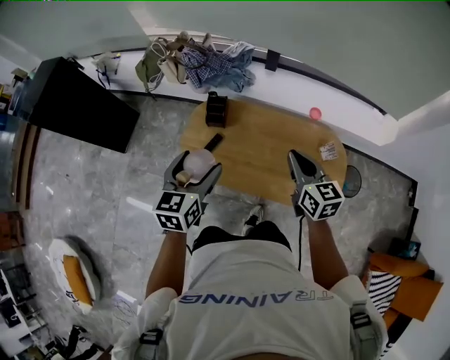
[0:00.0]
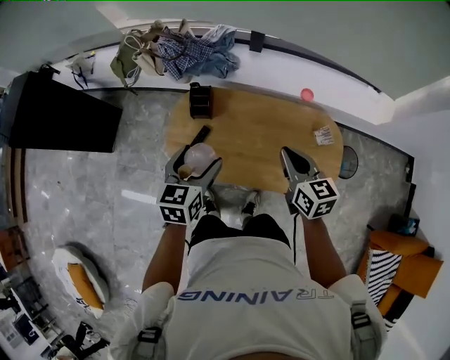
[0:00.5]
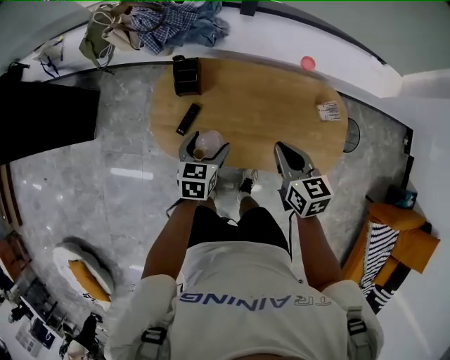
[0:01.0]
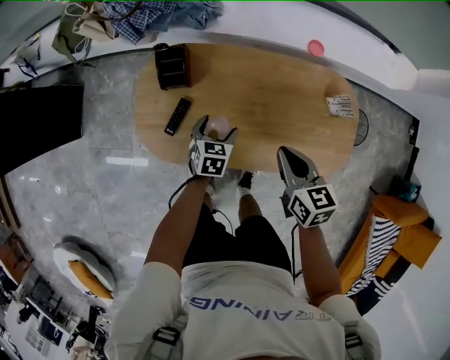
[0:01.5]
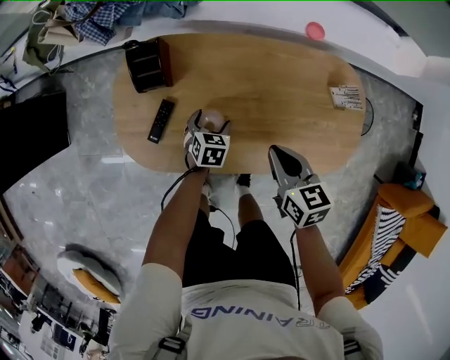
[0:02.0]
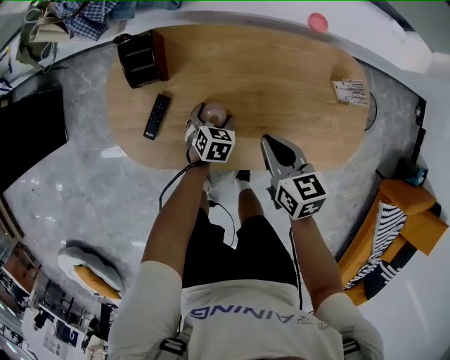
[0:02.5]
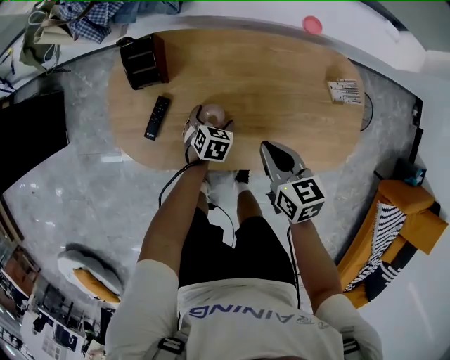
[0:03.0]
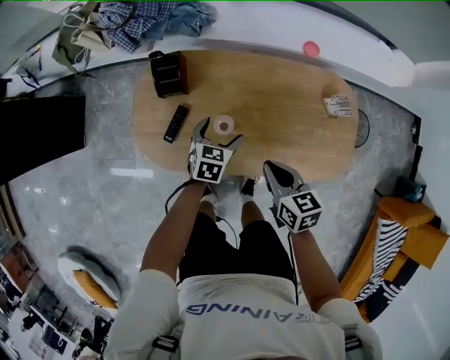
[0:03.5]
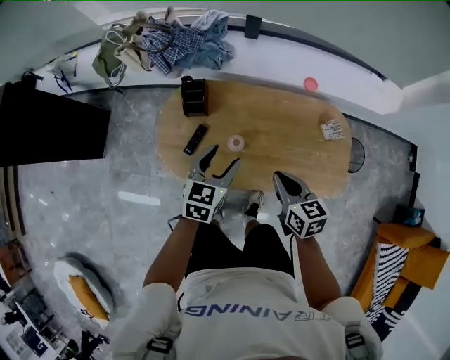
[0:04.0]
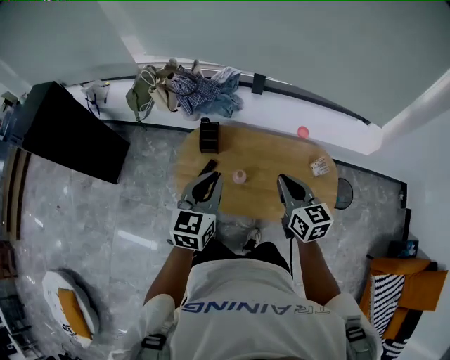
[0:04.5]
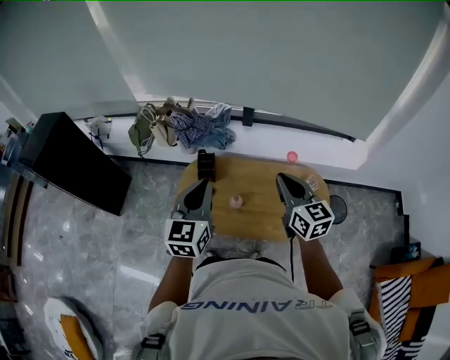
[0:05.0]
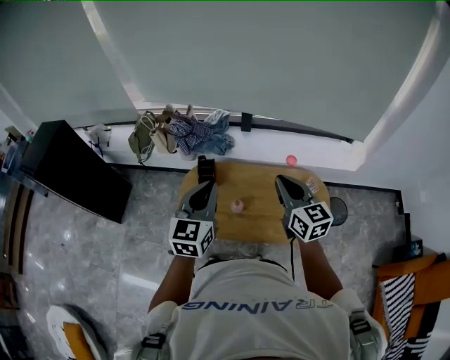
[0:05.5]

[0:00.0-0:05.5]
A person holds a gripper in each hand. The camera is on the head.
0:00.0 to 0:02.0: The left gripper moves downward, roughly 50 cm, and tilts its fingers about 40 degrees downward; the right gripper shifts about 30 cm downward, and changes its angle by some 30 degrees.
0:02.0 to 0:03.5: The left gripper shifts approximately 15 cm upward. The right gripper changes place by approximately 5 cm.
0:03.5 to 0:05.5: Both grippers move upward, approximately 40 cm. The right gripper points its fingers some 30 degrees further upward. Meanwhile the left gripper points its fingers about 40 degrees further upward, and closes.

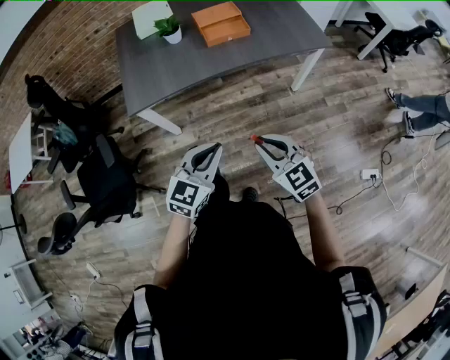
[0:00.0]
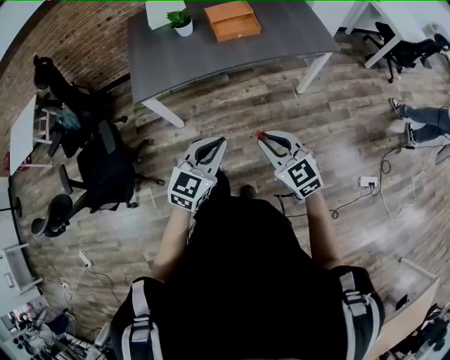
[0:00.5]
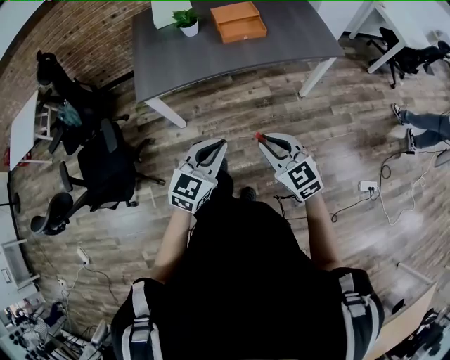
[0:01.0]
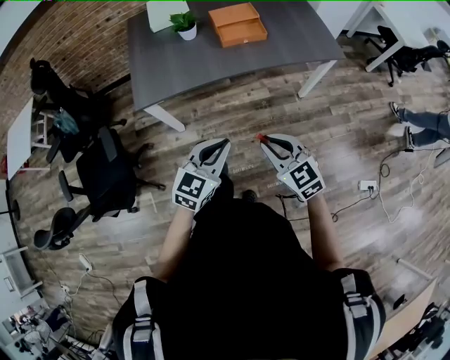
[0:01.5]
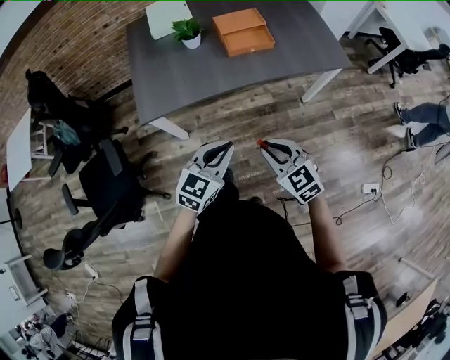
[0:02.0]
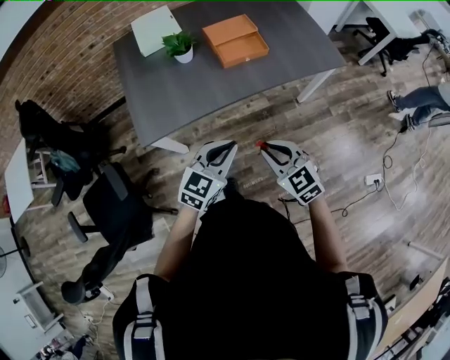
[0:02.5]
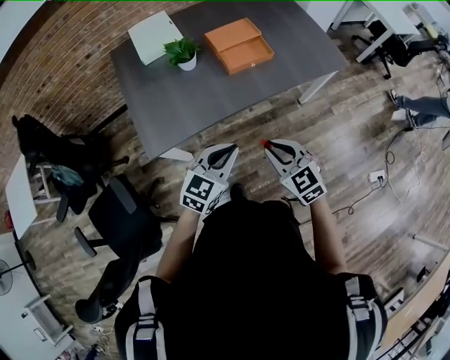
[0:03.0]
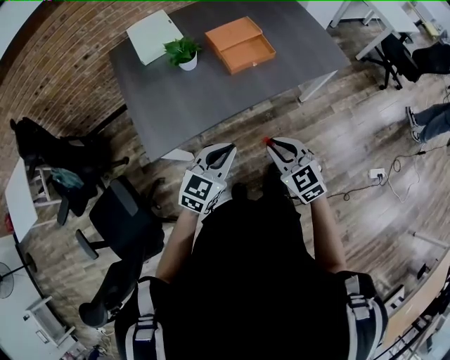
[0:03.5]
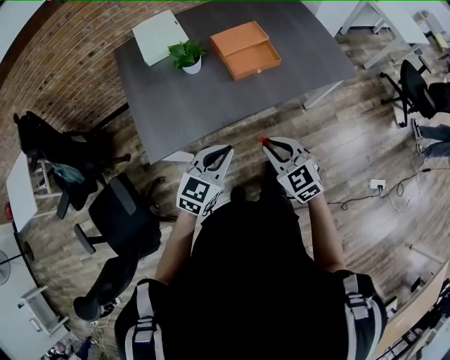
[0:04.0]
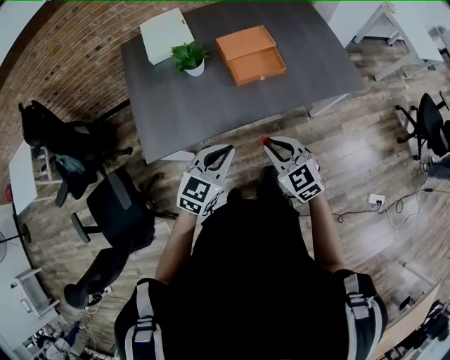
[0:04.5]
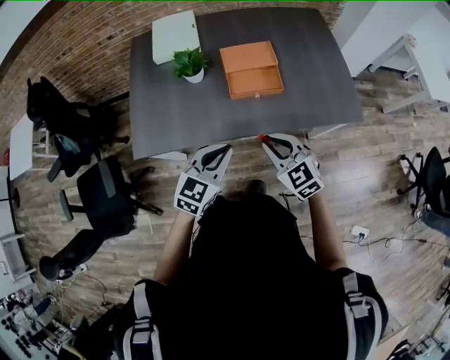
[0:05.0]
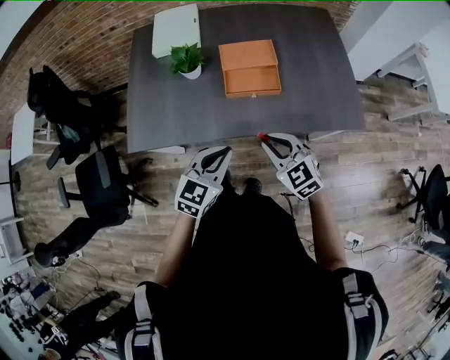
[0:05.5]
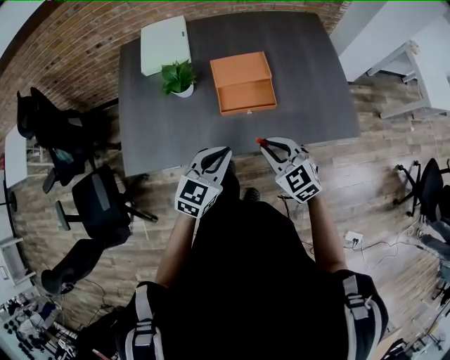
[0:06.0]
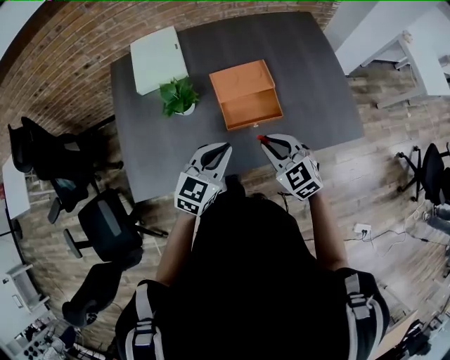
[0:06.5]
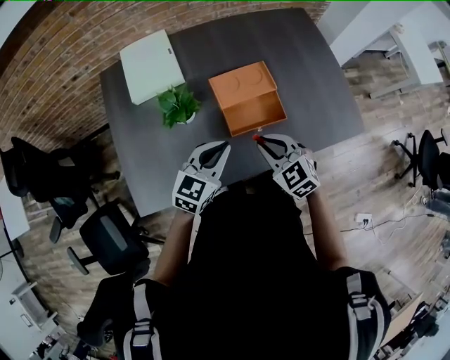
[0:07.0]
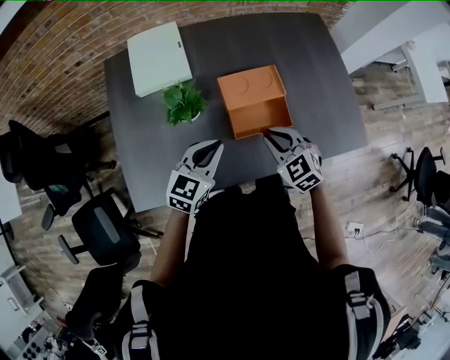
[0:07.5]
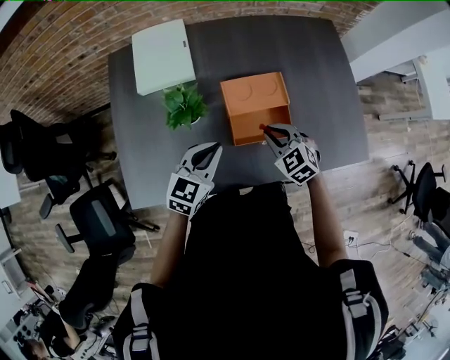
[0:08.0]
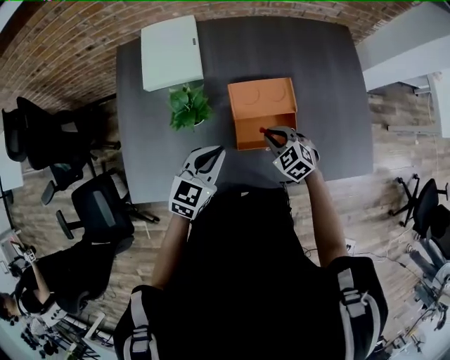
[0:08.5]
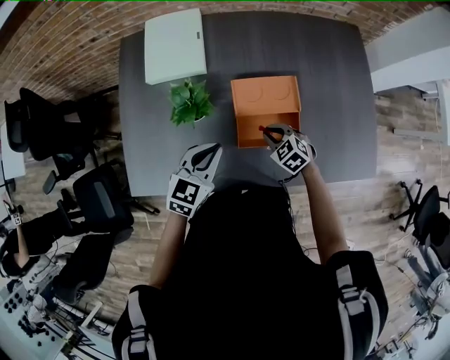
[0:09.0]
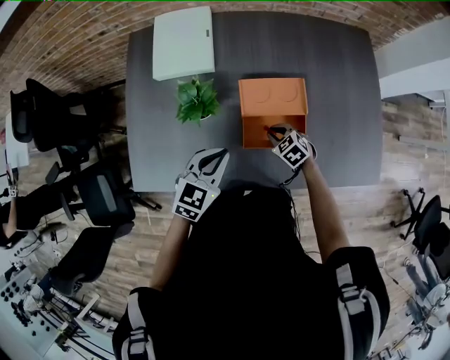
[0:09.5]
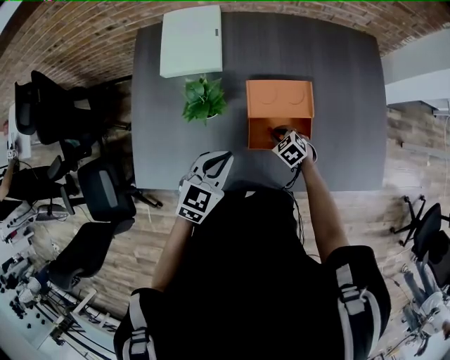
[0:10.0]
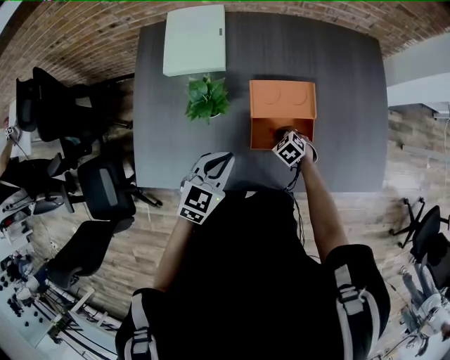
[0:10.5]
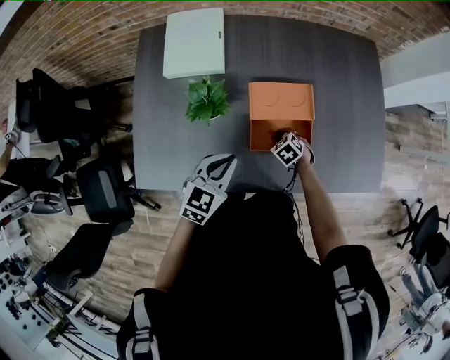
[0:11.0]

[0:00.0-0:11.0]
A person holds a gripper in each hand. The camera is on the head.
0:00.0 to 0:02.0: Both grippers move forward and to the left, approximately 10 cm.
0:02.0 to 0:03.5: The grippers both shift forward and to the left by roughly 15 cm.
0:03.5 to 0:05.5: The left gripper is displaced to the right and forward by roughly 20 cm, and rotates some 20 degrees. Meanwhile the right gripper shifts roughly 25 cm forward and to the right, and swivels approximately 30 degrees.
0:05.5 to 0:07.5: The right gripper shifts roughly 20 cm forward. The left gripper goes roughly 25 cm forward and to the left.
0:07.5 to 0:09.0: The right gripper shifts approximately 15 cm downward and forward, and swivels about 20 degrees.
0:09.0 to 0:11.0: The right gripper moves downward, approximately 10 cm.

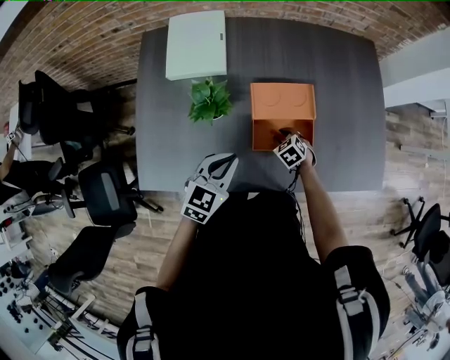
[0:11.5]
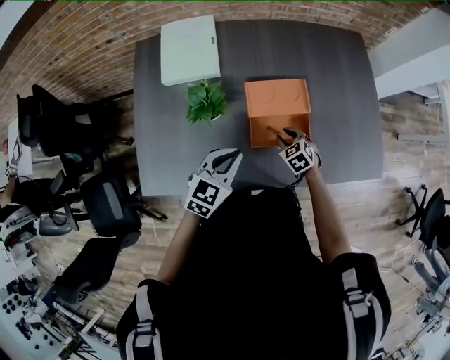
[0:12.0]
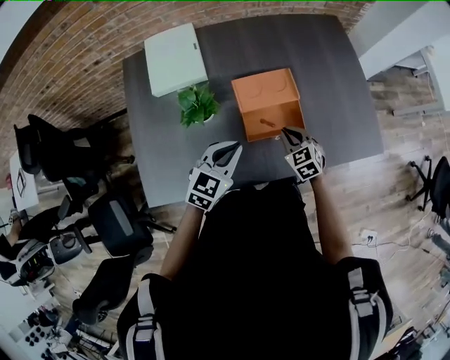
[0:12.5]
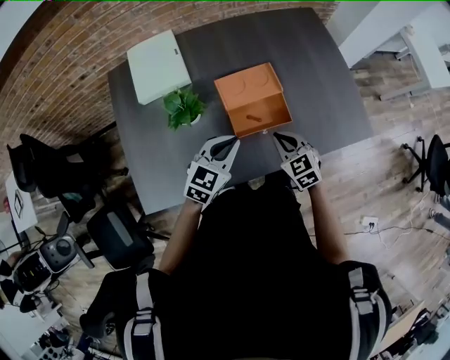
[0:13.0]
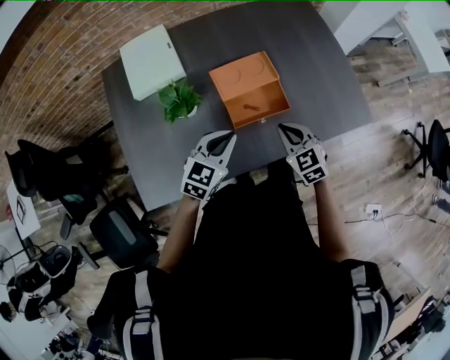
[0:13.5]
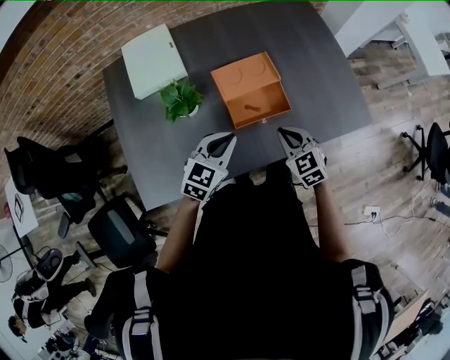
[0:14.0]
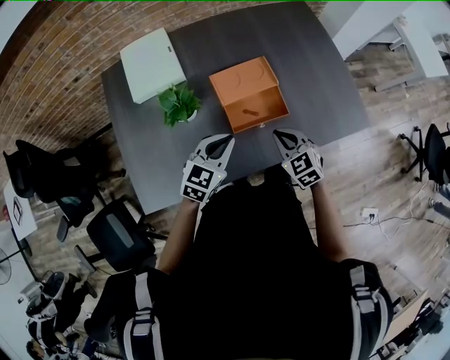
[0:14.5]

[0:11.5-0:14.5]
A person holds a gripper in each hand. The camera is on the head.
0:11.5 to 0:13.0: The left gripper moves to the right, about 5 cm, while the right gripper is displaced upward and backward by some 20 cm, turns by about 30 degrees, and closes its fingers.
0:13.0 to 0:14.5: The grippers move only a little.

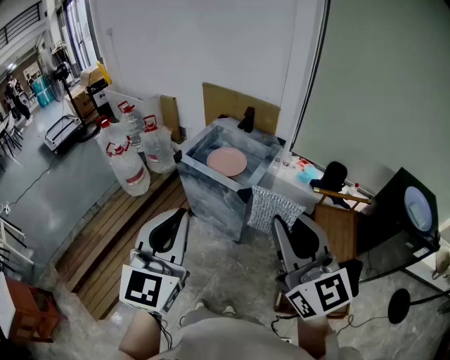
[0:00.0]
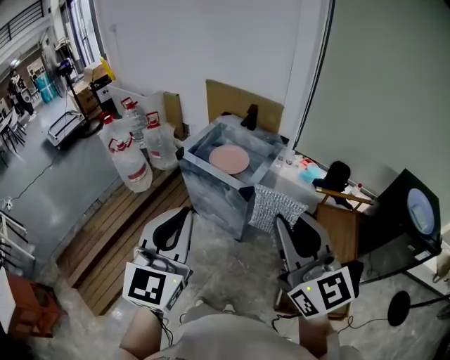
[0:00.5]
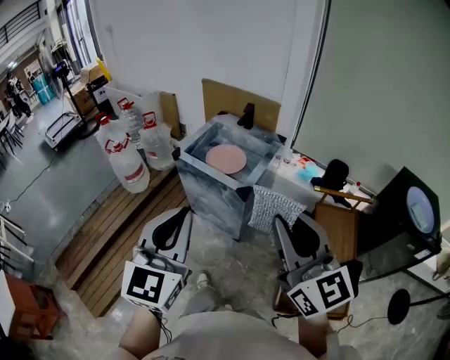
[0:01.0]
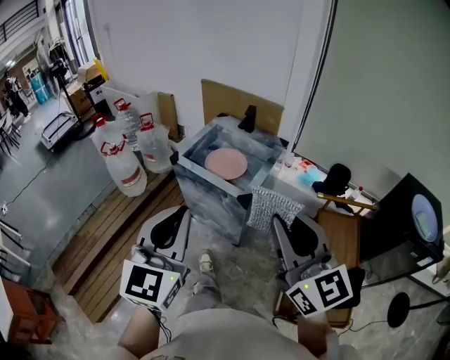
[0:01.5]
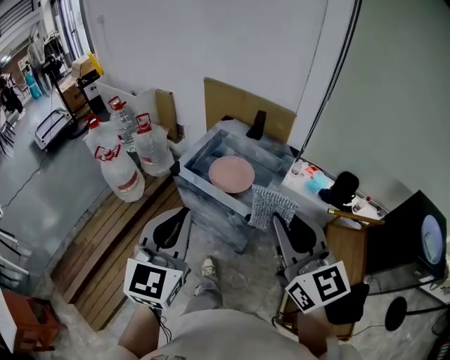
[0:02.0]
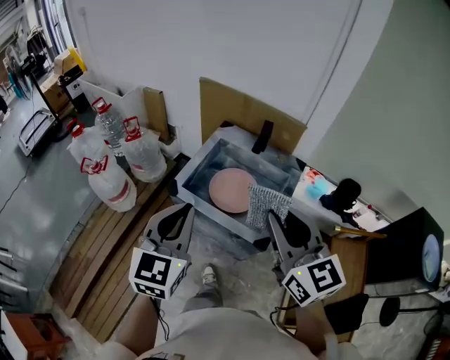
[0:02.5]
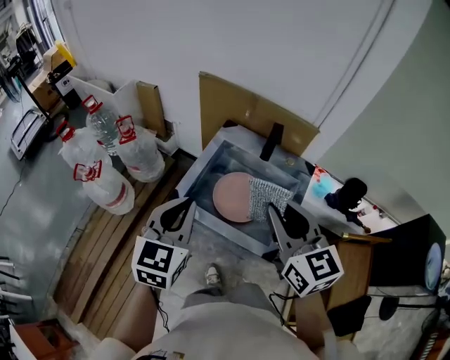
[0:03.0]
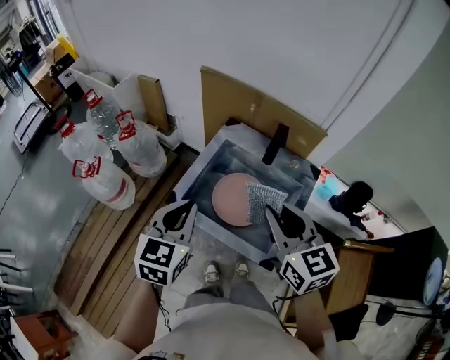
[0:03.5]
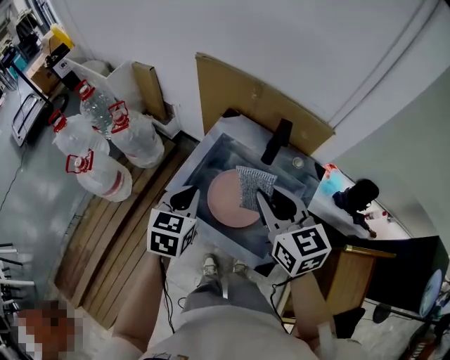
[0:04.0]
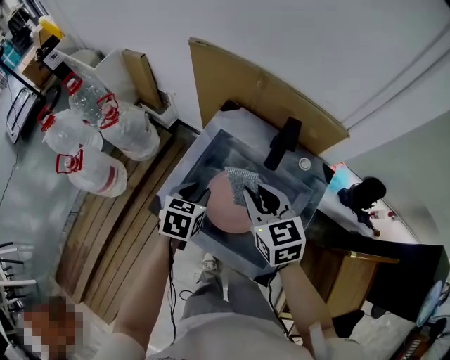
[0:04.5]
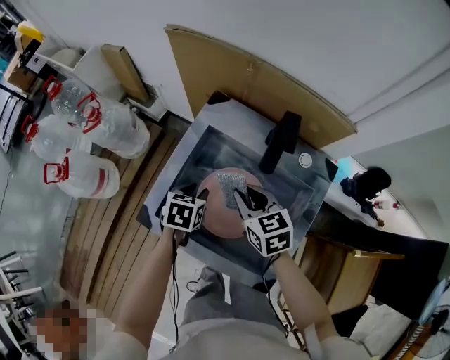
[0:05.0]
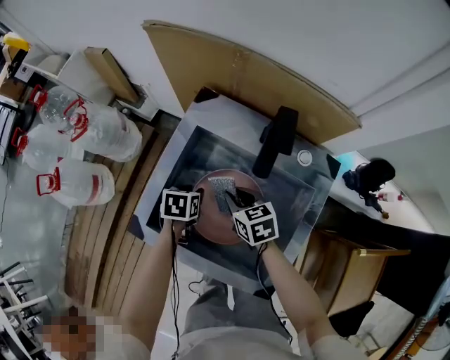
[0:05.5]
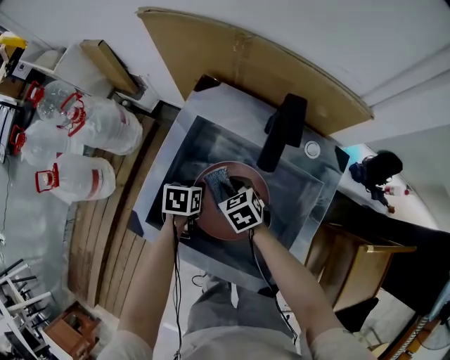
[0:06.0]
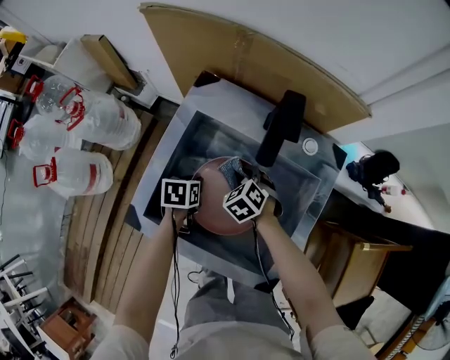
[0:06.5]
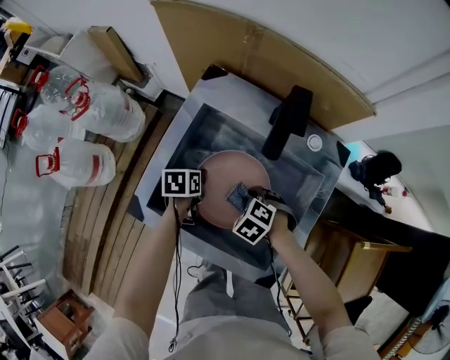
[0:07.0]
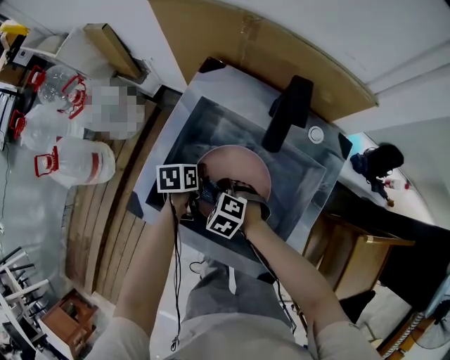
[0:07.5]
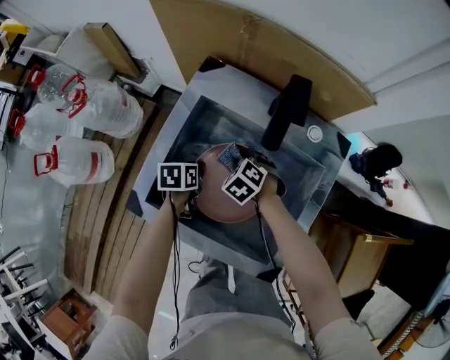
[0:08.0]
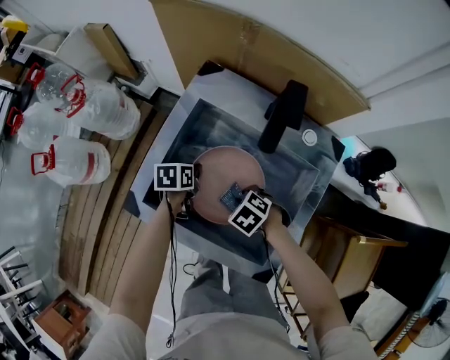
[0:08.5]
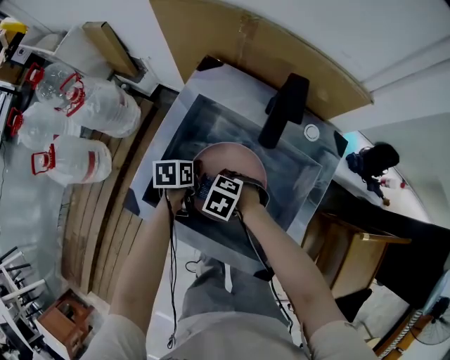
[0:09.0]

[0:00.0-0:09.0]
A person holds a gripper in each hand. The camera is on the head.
0:00.0 to 0:02.0: The two grippers go some 20 cm forward.
0:02.0 to 0:04.5: The pair of grippers is taken forward, about 50 cm. Both grippers travel together downward, roughly 30 cm. The left gripper tips its fingers downward by about 40 degrees, and opens, while the right gripper points its fingers some 30 degrees further downward.
0:04.5 to 0:07.0: The two grippers go roughly 25 cm downward. The right gripper tips its fingers downward by about 50 degrees. The left gripper swivels roughly 30 degrees.
0:07.0 to 0:09.0: The right gripper ends up some 10 cm from where it was.
